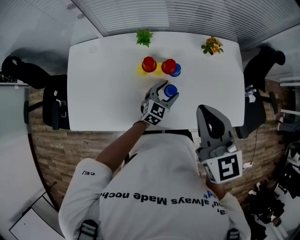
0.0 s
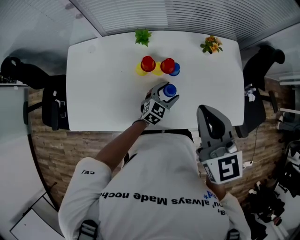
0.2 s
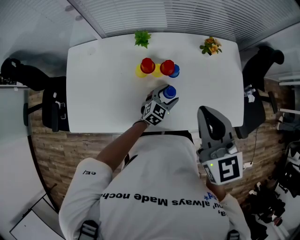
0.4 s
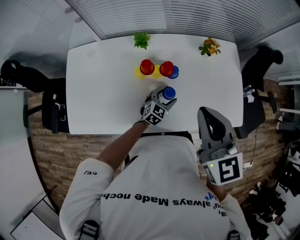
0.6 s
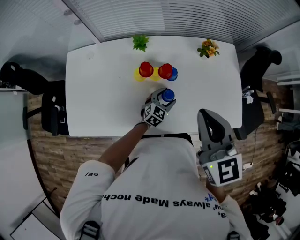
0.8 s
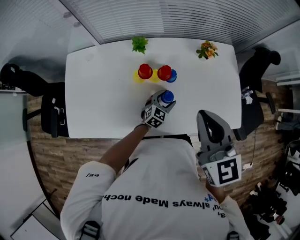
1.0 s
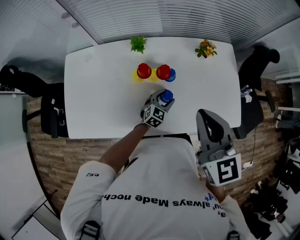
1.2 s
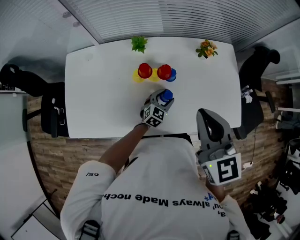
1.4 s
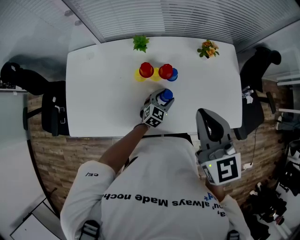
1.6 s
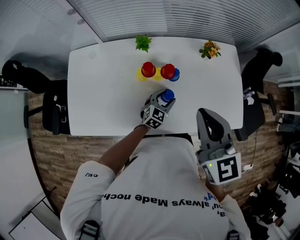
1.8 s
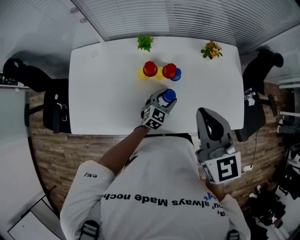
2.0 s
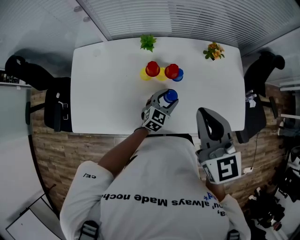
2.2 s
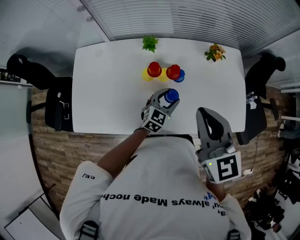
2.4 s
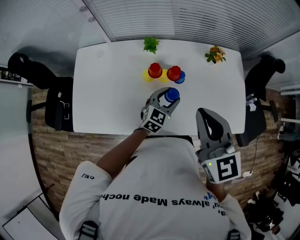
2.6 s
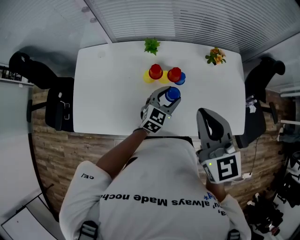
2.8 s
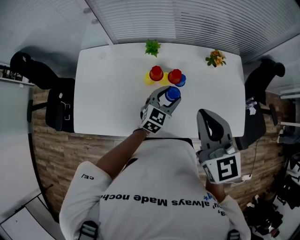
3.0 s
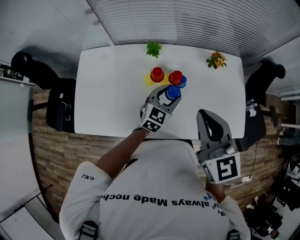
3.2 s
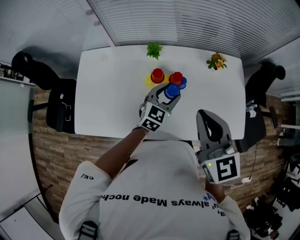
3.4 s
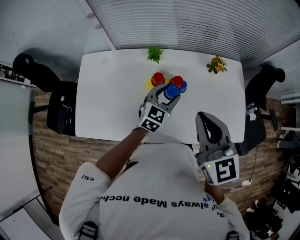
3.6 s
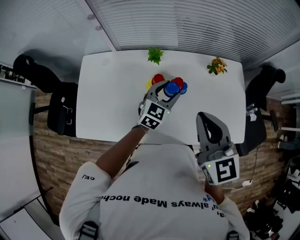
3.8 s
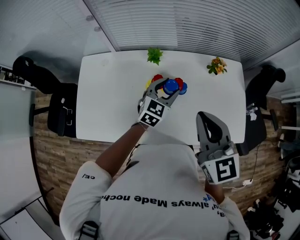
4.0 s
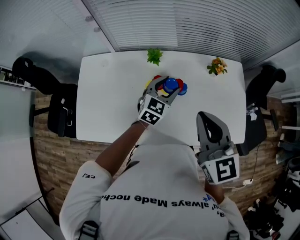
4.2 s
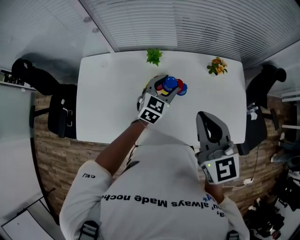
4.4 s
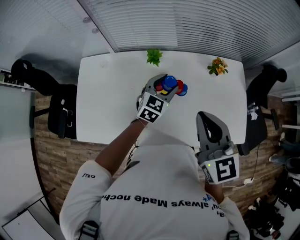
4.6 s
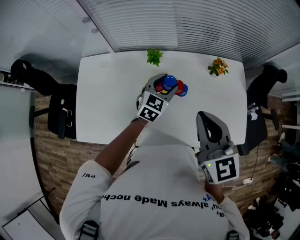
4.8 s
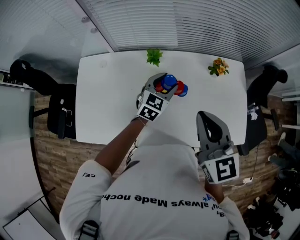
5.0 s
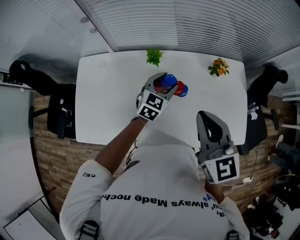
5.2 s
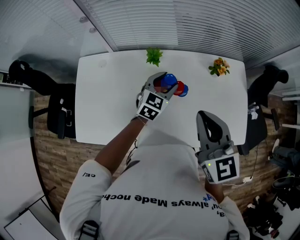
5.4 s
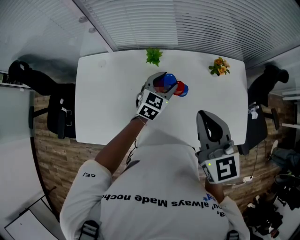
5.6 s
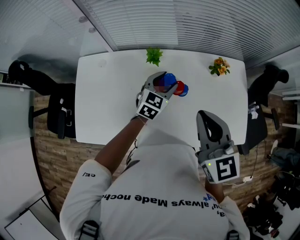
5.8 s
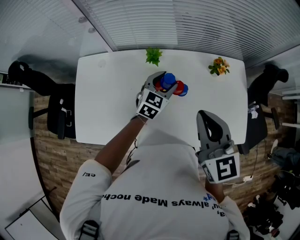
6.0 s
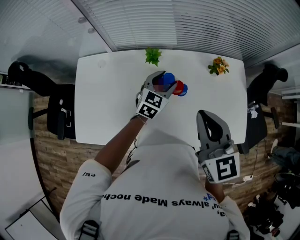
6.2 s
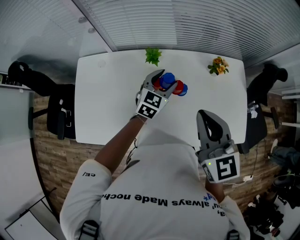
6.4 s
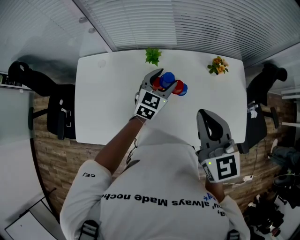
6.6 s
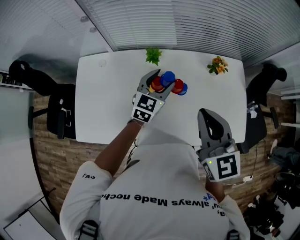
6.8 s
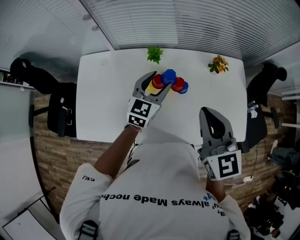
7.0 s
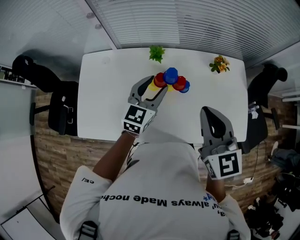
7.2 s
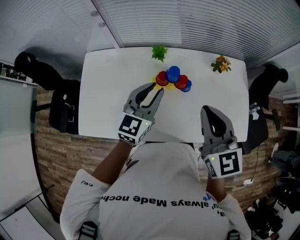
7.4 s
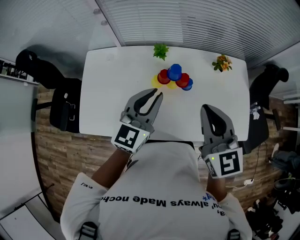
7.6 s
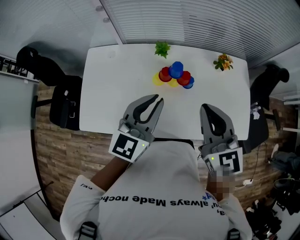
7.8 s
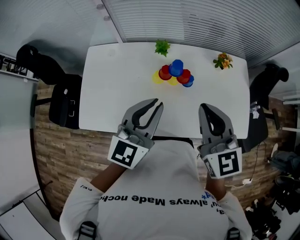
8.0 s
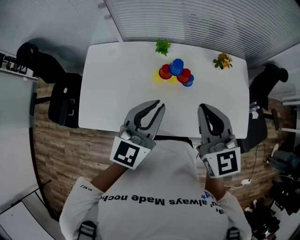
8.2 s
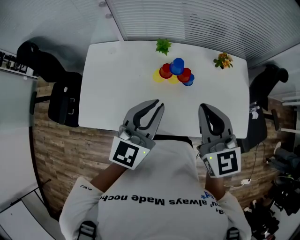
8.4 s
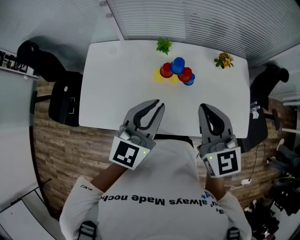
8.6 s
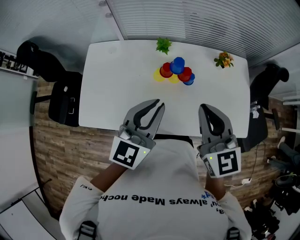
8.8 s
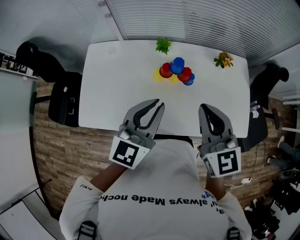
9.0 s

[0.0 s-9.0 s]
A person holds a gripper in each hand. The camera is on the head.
0.0 to 1.6 s: The left gripper heads downward, covering some 5 cm.
1.6 to 3.0 s: The left gripper heads upward, covering roughly 15 cm.
3.0 to 4.4 s: The left gripper heads forward, covering roughly 10 cm.
4.4 to 6.0 s: The grippers make only small movements.
6.0 to 7.6 s: The left gripper shifts about 20 cm backward, upward and to the left, changes its angle by approximately 20 degrees, and closes up.
7.6 to 9.0 s: The left gripper is displaced backward by approximately 5 cm.

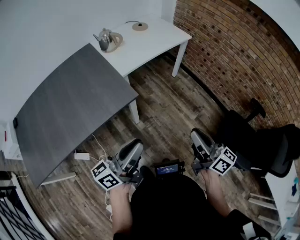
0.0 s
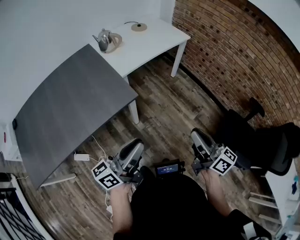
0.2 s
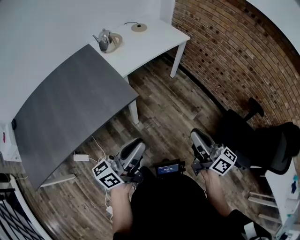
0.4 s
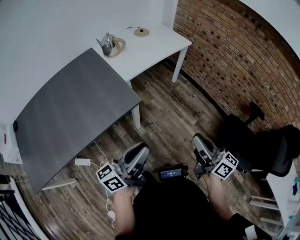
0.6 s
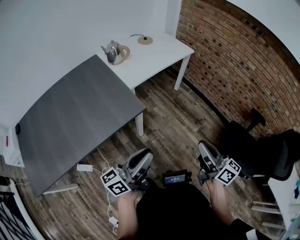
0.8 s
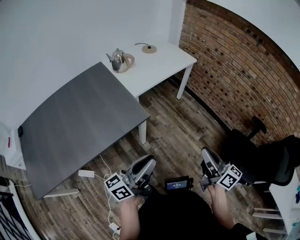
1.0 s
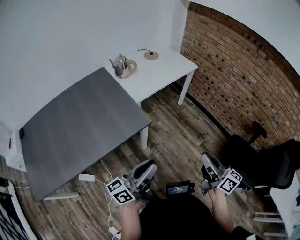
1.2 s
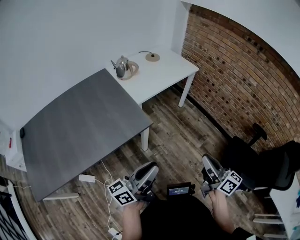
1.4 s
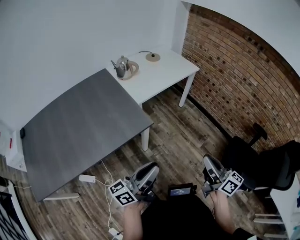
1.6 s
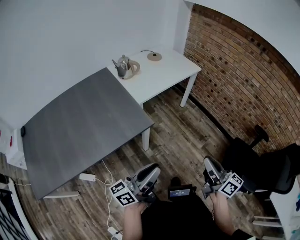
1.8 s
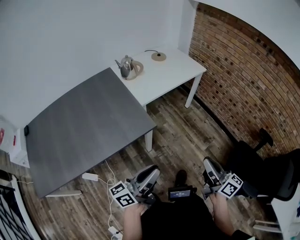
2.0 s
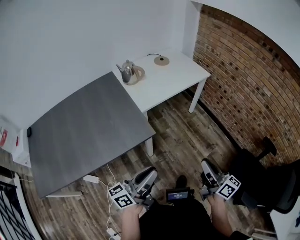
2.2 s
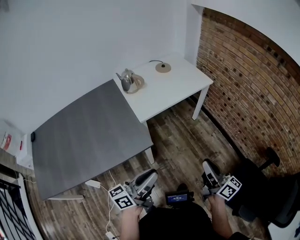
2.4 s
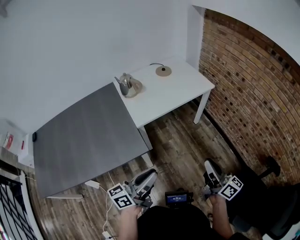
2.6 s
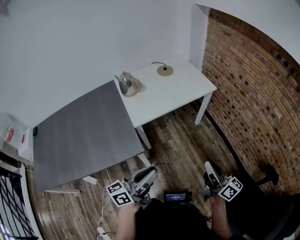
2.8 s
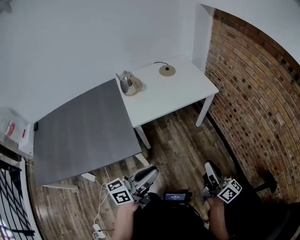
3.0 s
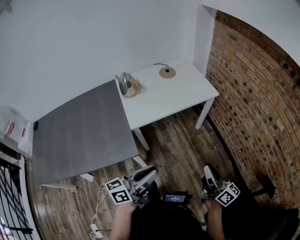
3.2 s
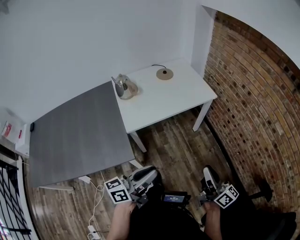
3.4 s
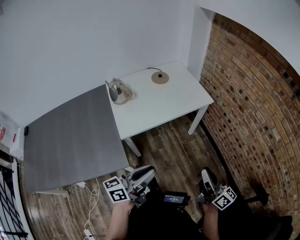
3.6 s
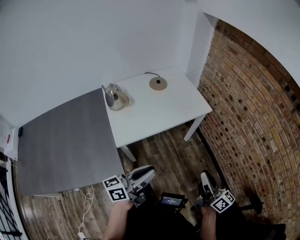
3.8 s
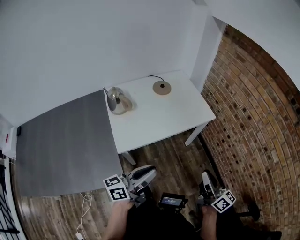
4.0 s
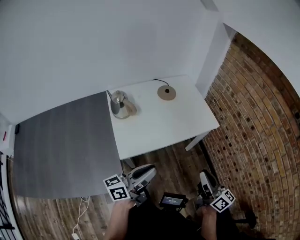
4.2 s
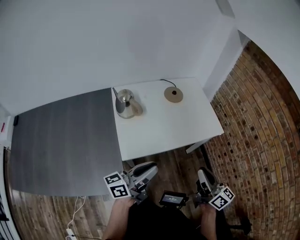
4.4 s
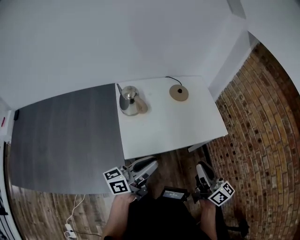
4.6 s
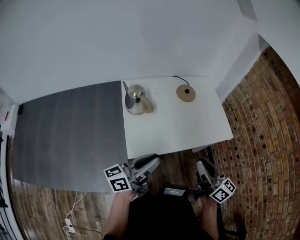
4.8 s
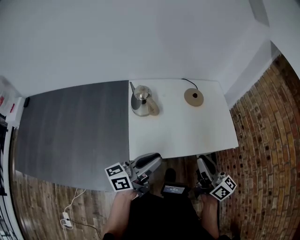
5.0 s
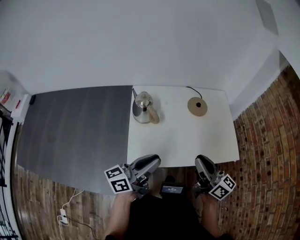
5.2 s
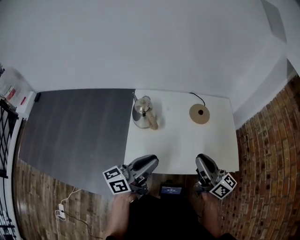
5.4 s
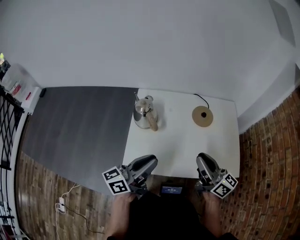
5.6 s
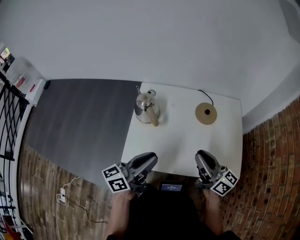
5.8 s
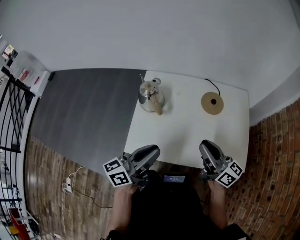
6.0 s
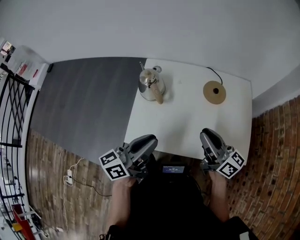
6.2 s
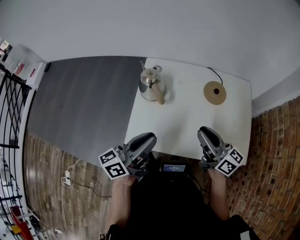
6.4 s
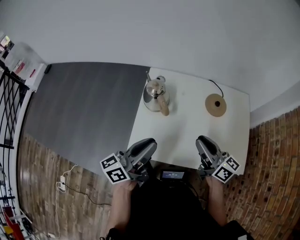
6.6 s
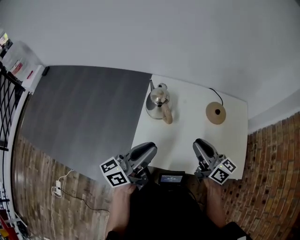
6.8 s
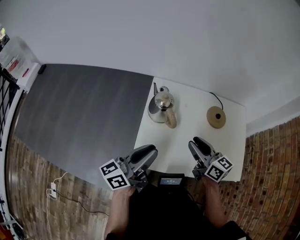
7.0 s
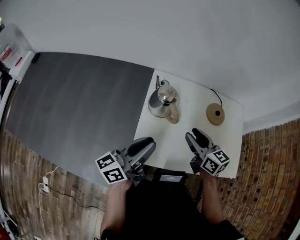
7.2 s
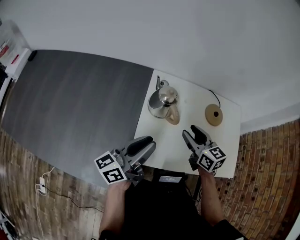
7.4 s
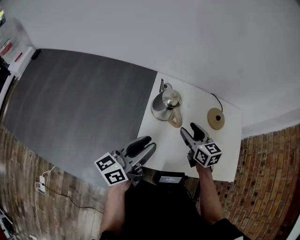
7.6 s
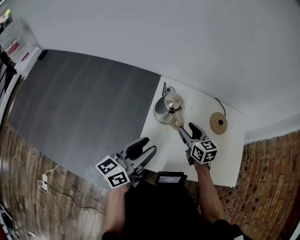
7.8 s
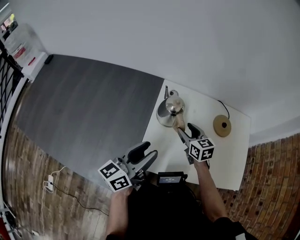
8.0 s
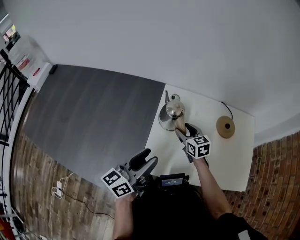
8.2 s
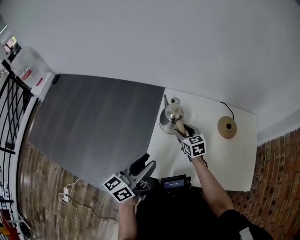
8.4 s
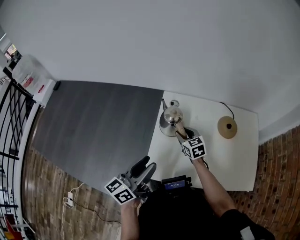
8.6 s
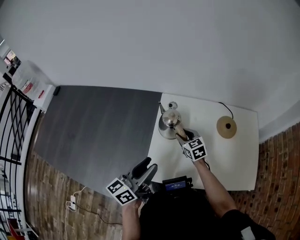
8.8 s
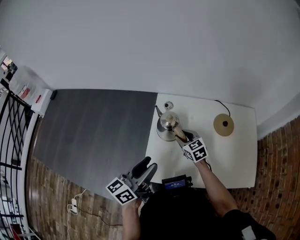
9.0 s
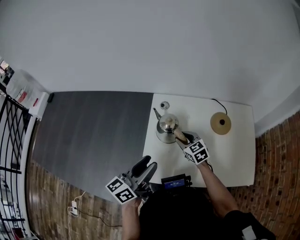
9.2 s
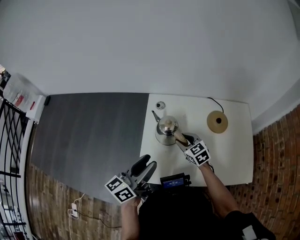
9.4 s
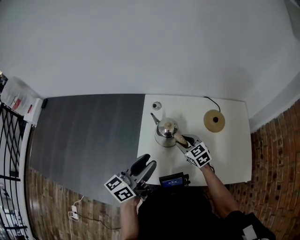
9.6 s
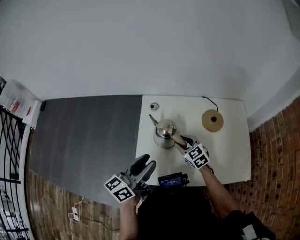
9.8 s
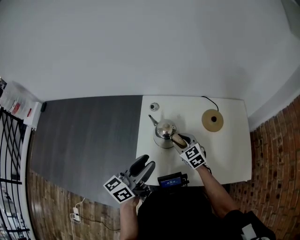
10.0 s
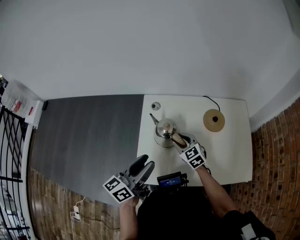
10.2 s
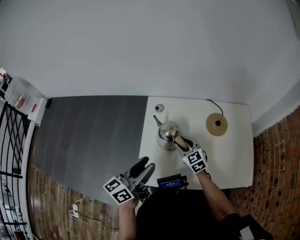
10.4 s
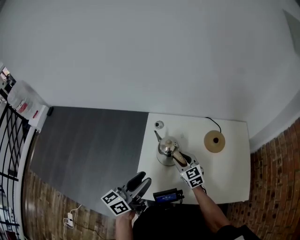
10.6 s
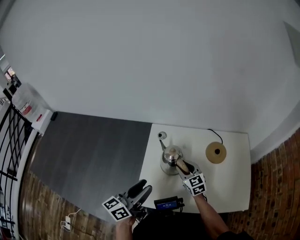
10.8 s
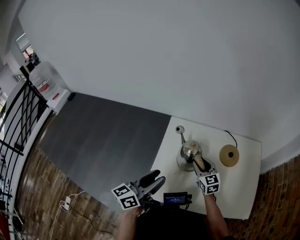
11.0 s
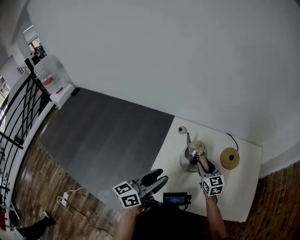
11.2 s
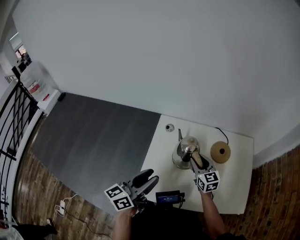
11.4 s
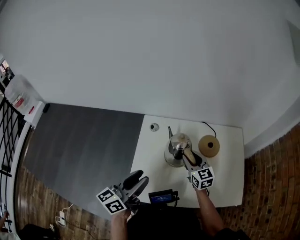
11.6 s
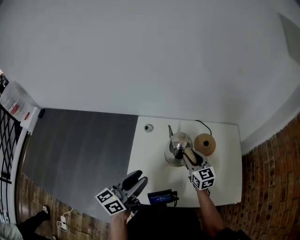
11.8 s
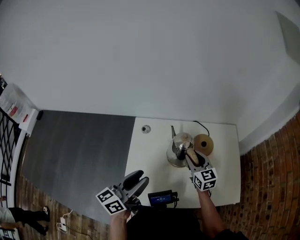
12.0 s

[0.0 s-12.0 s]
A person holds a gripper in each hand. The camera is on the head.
0.0 to 1.6 s: The grippers stay close to where they were, moving slightly.
1.6 to 3.0 s: Both grippers move forward and to the right, some 25 cm.
3.0 to 4.4 s: The two grippers go roughly 25 cm forward.
4.4 to 6.0 s: The left gripper ends up about 15 cm from where it was, and swivels roughly 30 degrees, while the right gripper ends up approximately 25 cm from where it was, and turns by about 40 degrees.
6.0 to 7.6 s: The left gripper moves to the left and forward, approximately 15 cm. Meanwhile the right gripper goes roughly 25 cm to the left, forward and downward, angles its fingers downward, by some 30 degrees, and opens.
7.6 to 9.0 s: The right gripper heads downward and forward, covering approximately 10 cm.
9.0 to 10.4 s: The right gripper ends up about 5 cm from where it was.
10.4 to 12.0 s: The right gripper moves to the right and upward, some 15 cm, and turns by about 20 degrees.

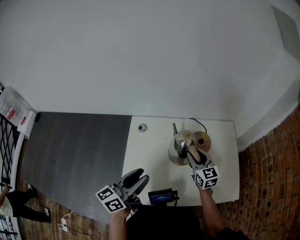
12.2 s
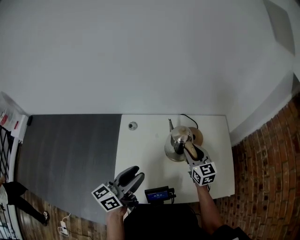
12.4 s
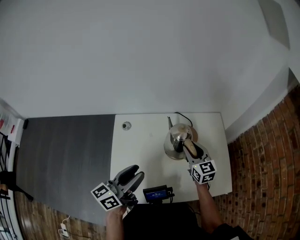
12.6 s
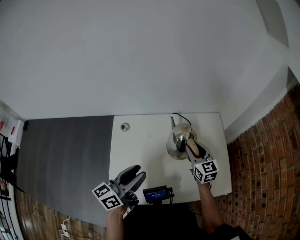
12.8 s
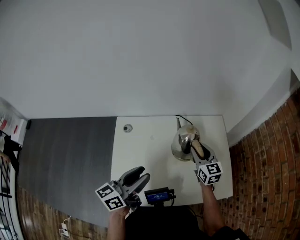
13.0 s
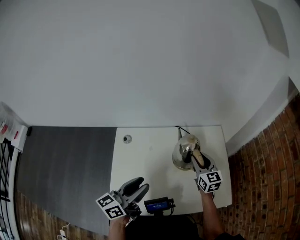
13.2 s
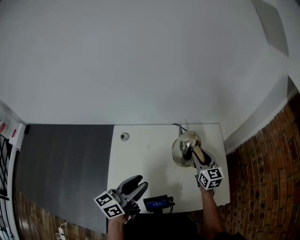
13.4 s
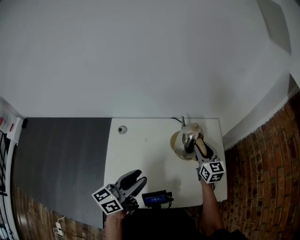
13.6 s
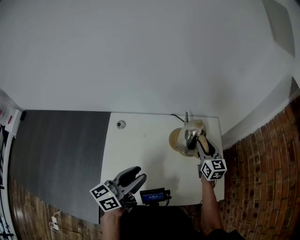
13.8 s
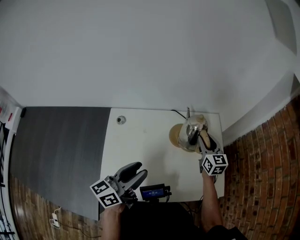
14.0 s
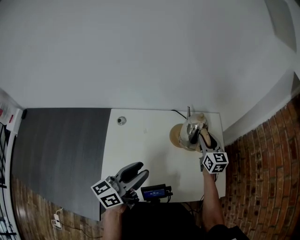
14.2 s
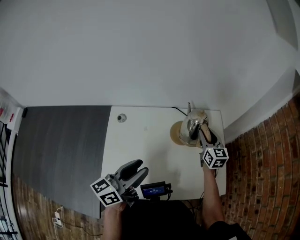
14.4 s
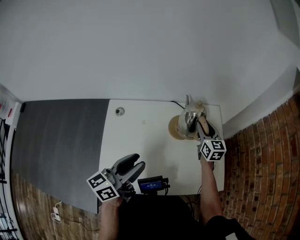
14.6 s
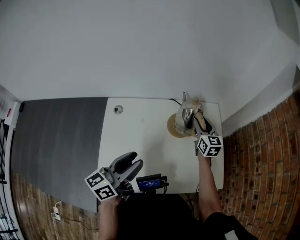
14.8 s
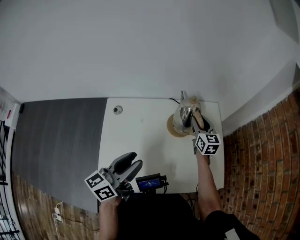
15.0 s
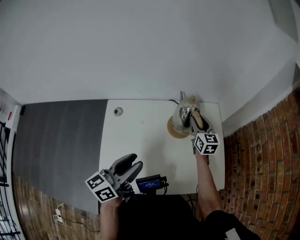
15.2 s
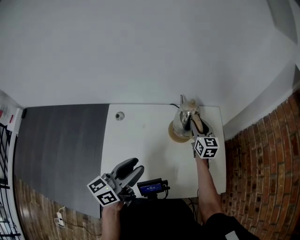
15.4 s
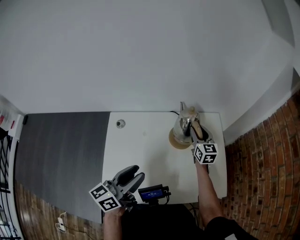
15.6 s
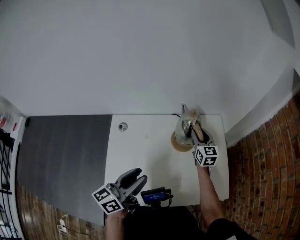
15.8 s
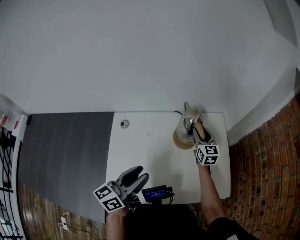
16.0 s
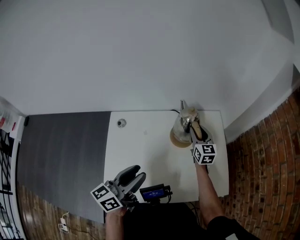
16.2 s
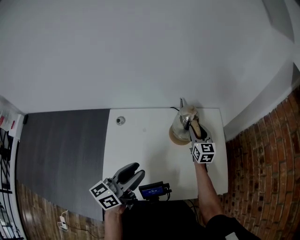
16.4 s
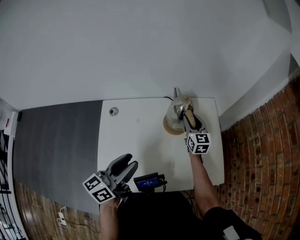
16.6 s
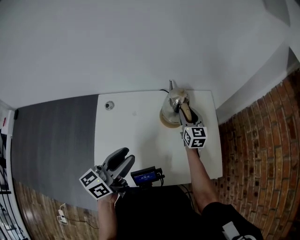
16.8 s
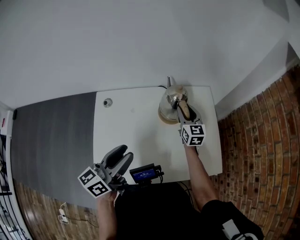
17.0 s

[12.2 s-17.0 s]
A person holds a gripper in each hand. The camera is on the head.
12.2 to 13.8 s: The left gripper goes roughly 10 cm to the right, while the right gripper heads to the right and forward, covering roughly 15 cm.
13.8 to 15.4 s: The right gripper shifts some 5 cm forward.
15.4 to 17.0 s: The grippers make only small movements.
